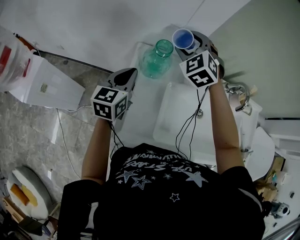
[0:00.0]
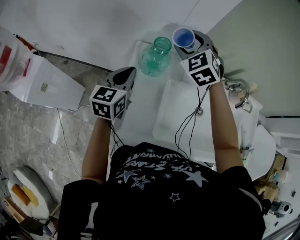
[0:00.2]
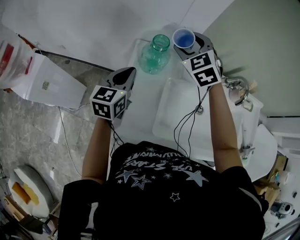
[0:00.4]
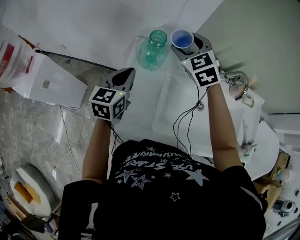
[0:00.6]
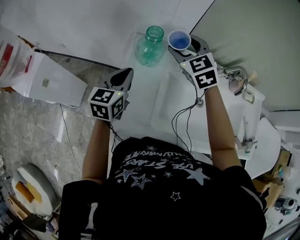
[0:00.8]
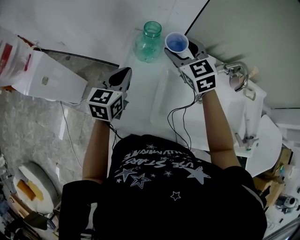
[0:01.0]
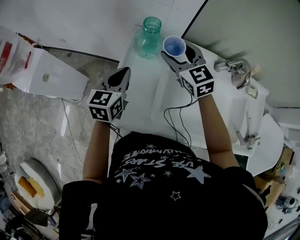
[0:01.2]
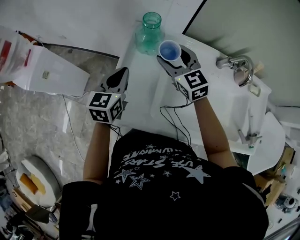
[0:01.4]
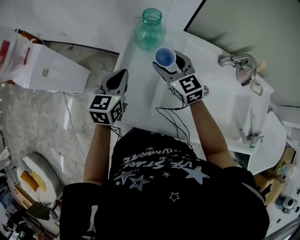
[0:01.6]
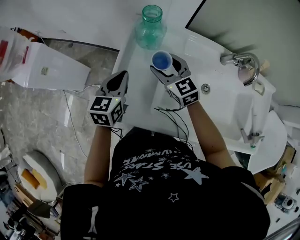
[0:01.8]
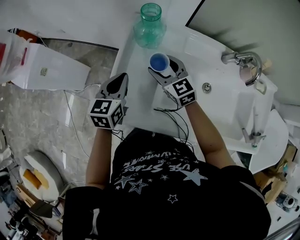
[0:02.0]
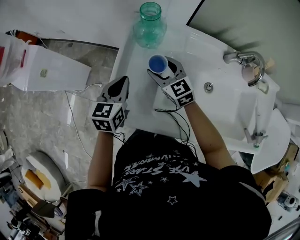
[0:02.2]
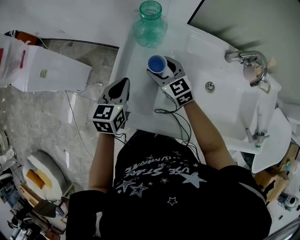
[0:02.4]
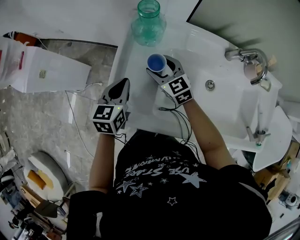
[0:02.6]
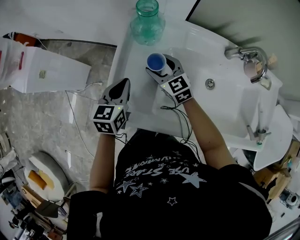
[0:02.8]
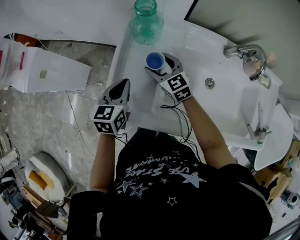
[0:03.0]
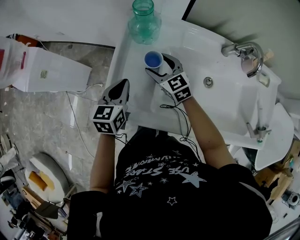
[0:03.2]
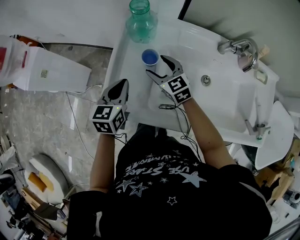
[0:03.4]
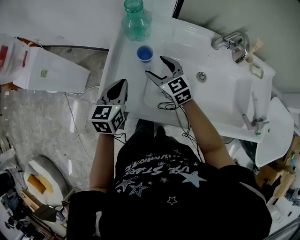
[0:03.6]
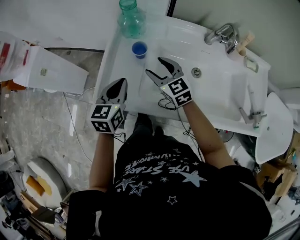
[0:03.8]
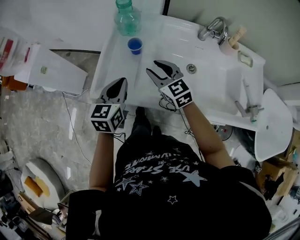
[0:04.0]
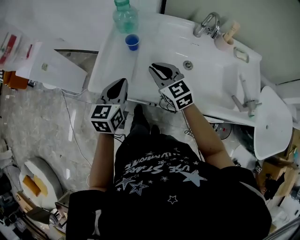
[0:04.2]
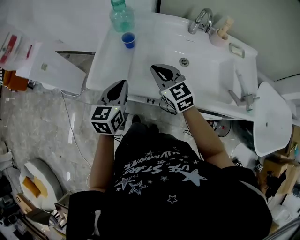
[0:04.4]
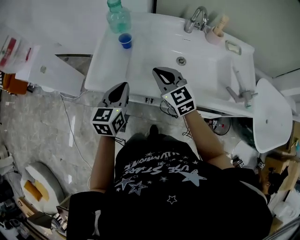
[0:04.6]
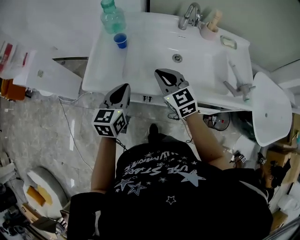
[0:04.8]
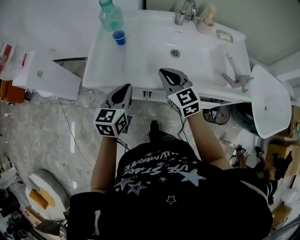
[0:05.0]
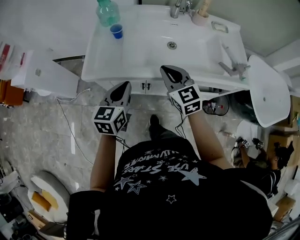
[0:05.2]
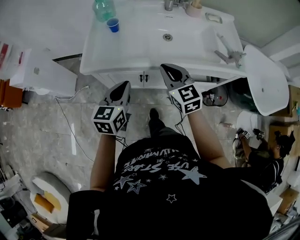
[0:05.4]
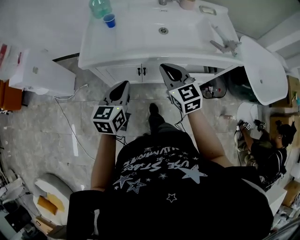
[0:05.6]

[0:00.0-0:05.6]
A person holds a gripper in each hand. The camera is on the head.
0:00.0 to 0:01.4: The right gripper goes about 15 cm backward and downward, and rotates roughly 40 degrees. Meanwhile the left gripper shifts about 10 cm backward.
0:01.4 to 0:02.8: The left gripper shifts some 5 cm downward, while the right gripper heads downward, covering roughly 15 cm.
0:02.8 to 0:04.2: The grippers both shift backward and upward by approximately 20 cm. The right gripper closes its fingers.
0:04.2 to 0:05.6: Both grippers travel together backward, approximately 20 cm. The right gripper swivels about 20 degrees.

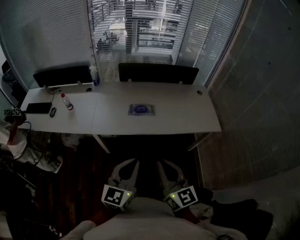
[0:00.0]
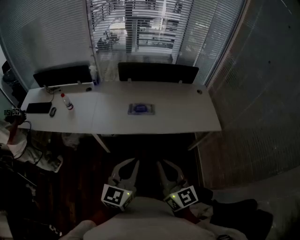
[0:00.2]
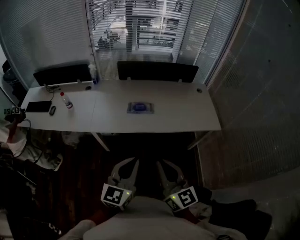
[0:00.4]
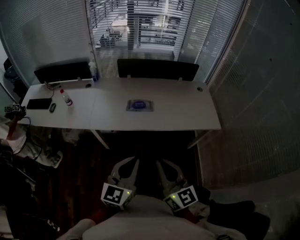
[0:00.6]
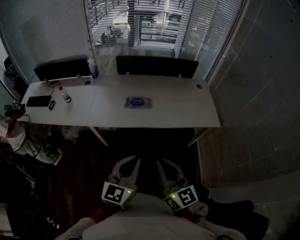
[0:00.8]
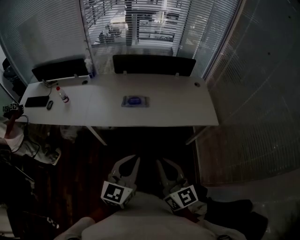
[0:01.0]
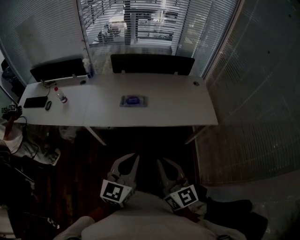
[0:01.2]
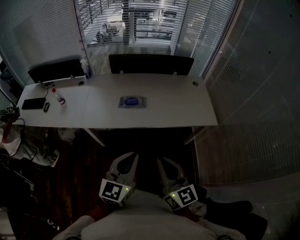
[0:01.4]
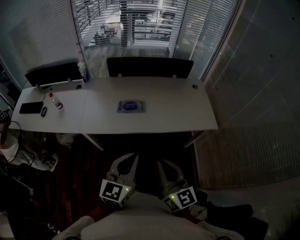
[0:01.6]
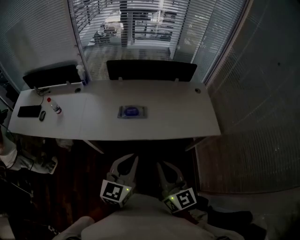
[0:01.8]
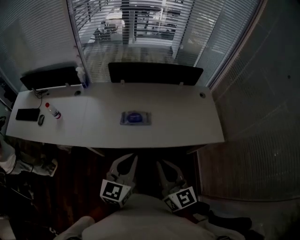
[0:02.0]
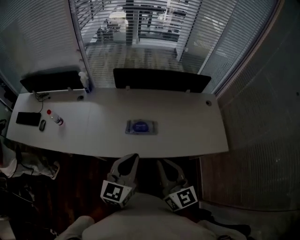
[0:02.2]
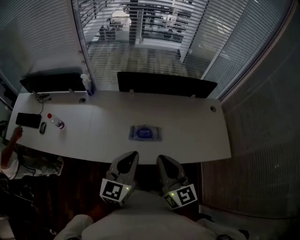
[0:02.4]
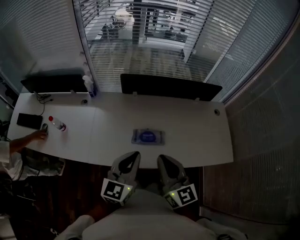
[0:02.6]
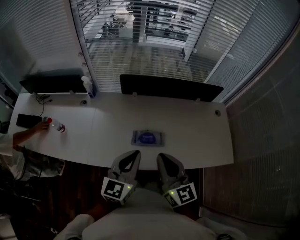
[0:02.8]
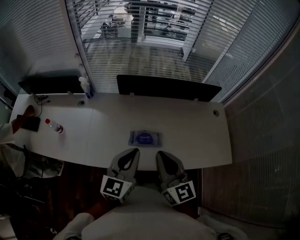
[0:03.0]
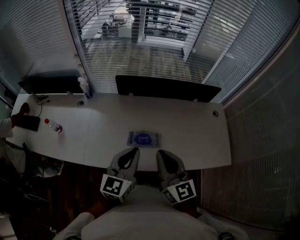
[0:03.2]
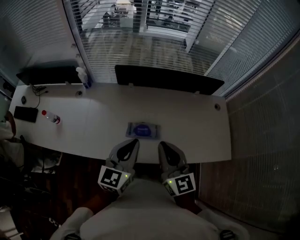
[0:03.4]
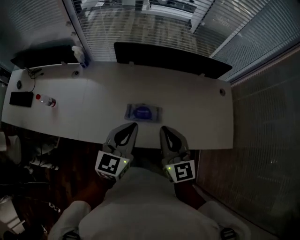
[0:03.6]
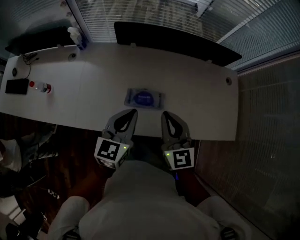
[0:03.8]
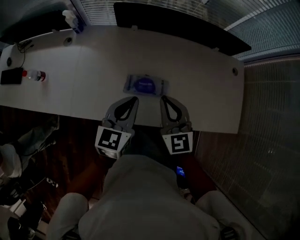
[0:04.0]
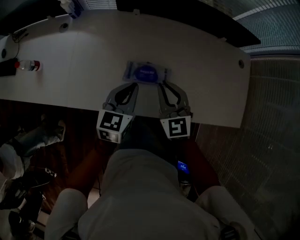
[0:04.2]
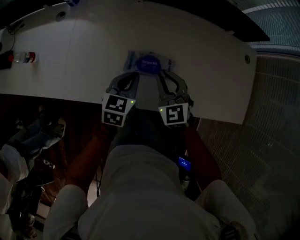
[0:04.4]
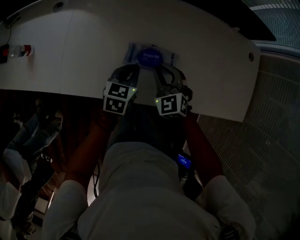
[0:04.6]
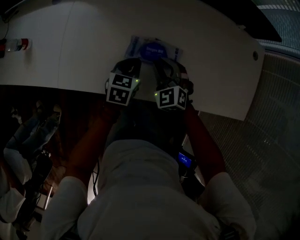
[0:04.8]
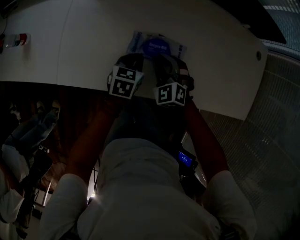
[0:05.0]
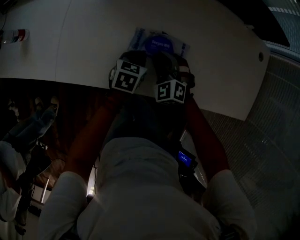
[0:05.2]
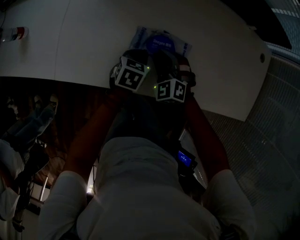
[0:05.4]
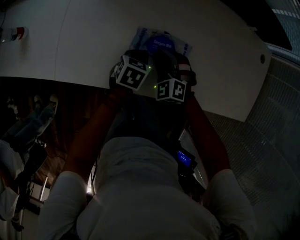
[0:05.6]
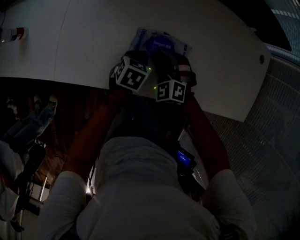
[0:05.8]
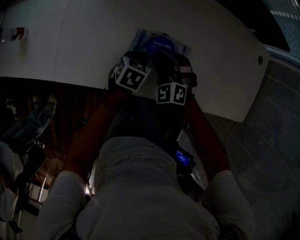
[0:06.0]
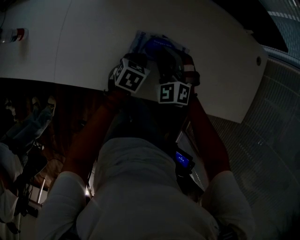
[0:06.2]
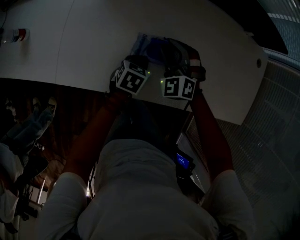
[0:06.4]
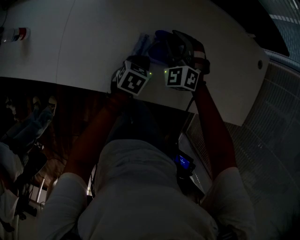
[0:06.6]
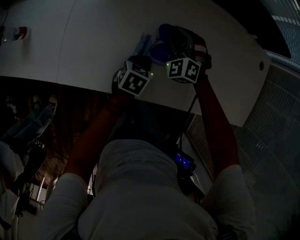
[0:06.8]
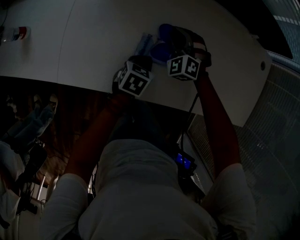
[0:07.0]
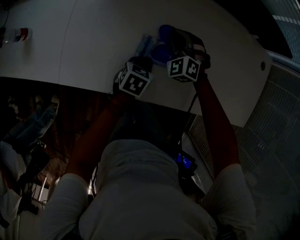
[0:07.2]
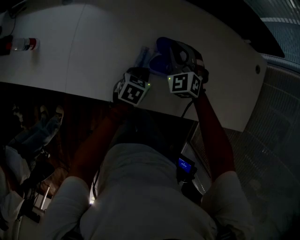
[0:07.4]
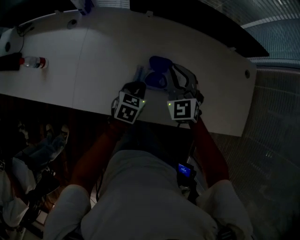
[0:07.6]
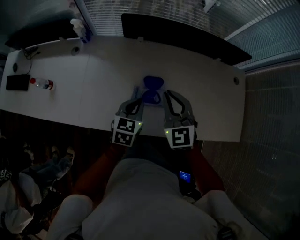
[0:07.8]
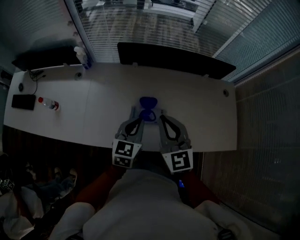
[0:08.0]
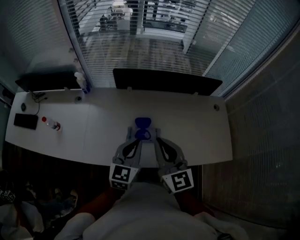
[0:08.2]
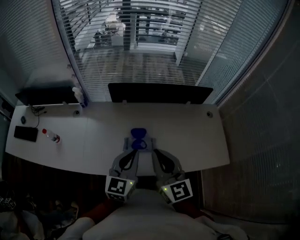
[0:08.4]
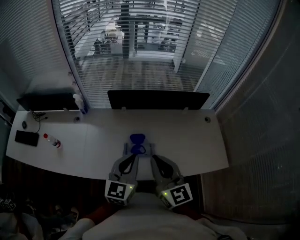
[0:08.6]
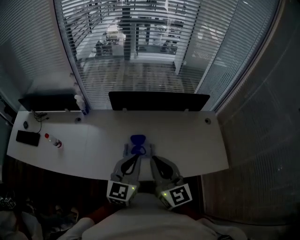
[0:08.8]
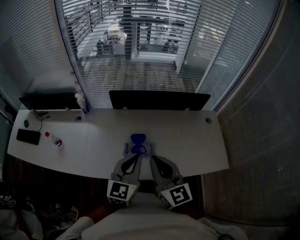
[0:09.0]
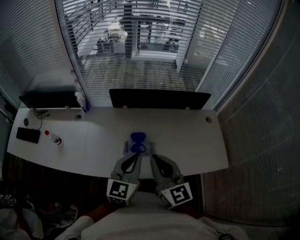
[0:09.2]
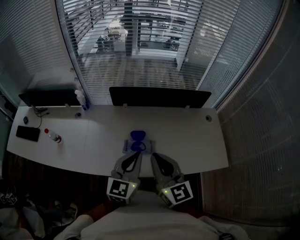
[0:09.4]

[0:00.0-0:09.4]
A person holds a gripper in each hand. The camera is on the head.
0:00.0 to 0:01.6: The right gripper moves to the right, some 10 cm; the left gripper travels to the right and forward by some 10 cm.
0:01.6 to 0:03.2: The grippers both shift forward by roughly 35 cm.
0:03.2 to 0:04.8: The grippers both shift downward by roughly 35 cm. The left gripper tips its fingers downward by about 40 degrees, while the right gripper points its fingers about 40 degrees further downward.
0:04.8 to 0:06.2: The left gripper heads downward, covering roughly 5 cm.
0:06.2 to 0:07.8: Both grippers travel together upward, roughly 20 cm. The right gripper rotates approximately 30 degrees, and closes; the left gripper swivels roughly 30 degrees.
0:07.8 to 0:09.4: Both grippers move upward and backward, roughly 25 cm. The right gripper swivels some 40 degrees. The left gripper rotates about 30 degrees.

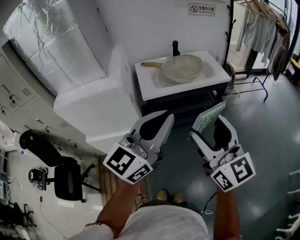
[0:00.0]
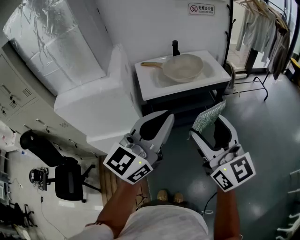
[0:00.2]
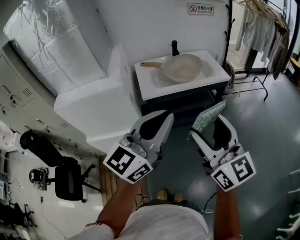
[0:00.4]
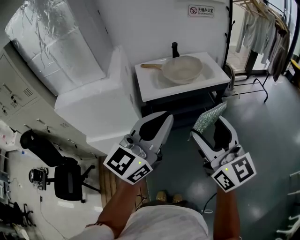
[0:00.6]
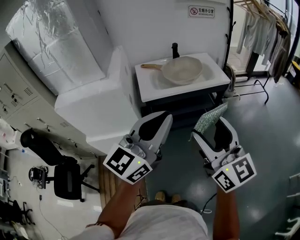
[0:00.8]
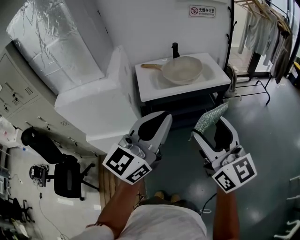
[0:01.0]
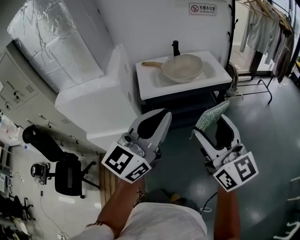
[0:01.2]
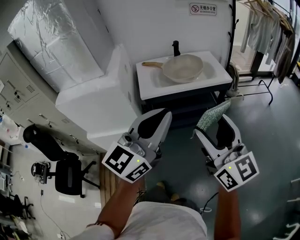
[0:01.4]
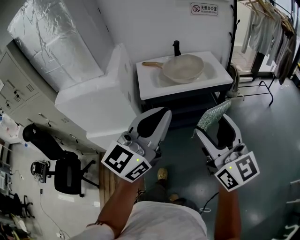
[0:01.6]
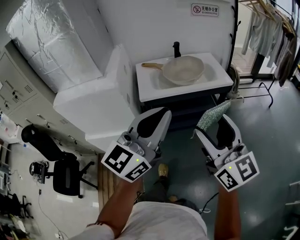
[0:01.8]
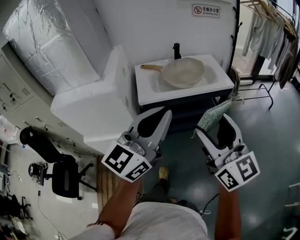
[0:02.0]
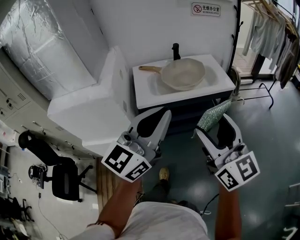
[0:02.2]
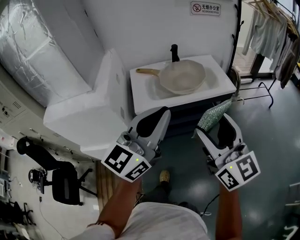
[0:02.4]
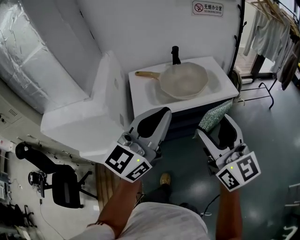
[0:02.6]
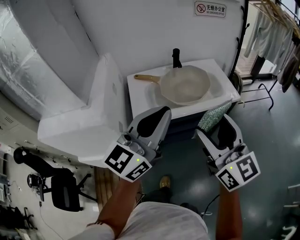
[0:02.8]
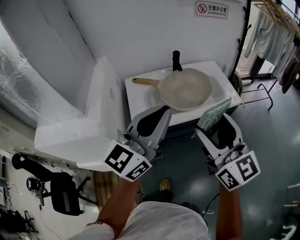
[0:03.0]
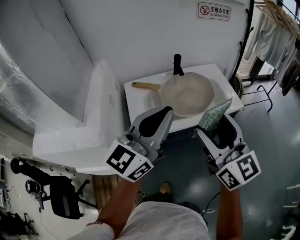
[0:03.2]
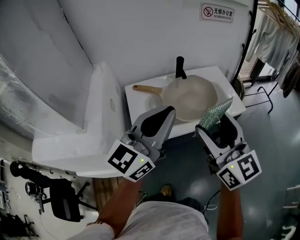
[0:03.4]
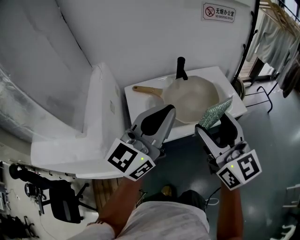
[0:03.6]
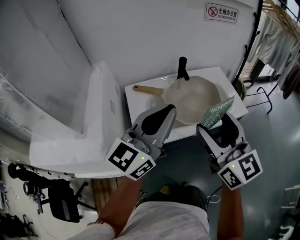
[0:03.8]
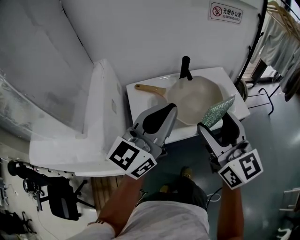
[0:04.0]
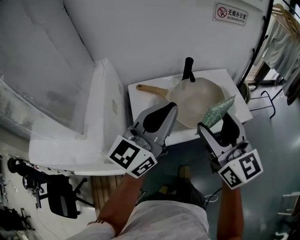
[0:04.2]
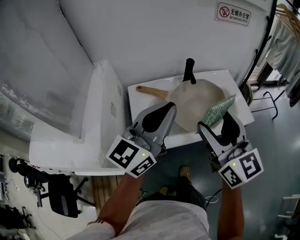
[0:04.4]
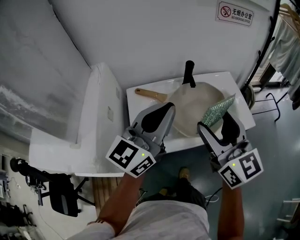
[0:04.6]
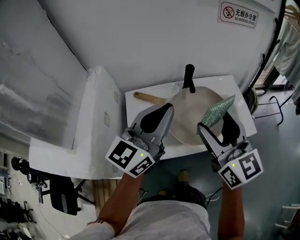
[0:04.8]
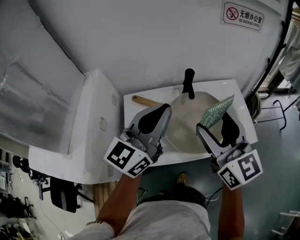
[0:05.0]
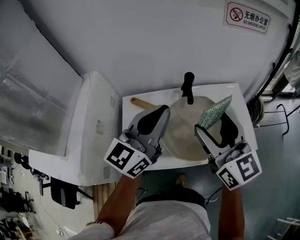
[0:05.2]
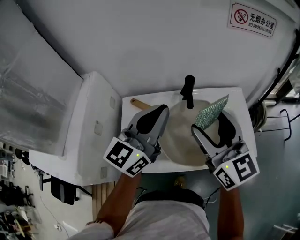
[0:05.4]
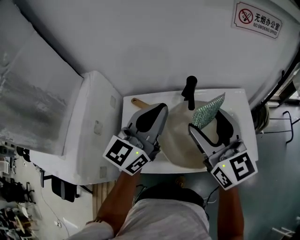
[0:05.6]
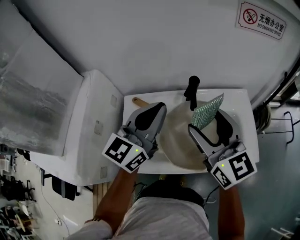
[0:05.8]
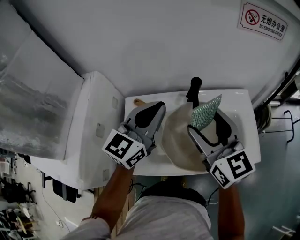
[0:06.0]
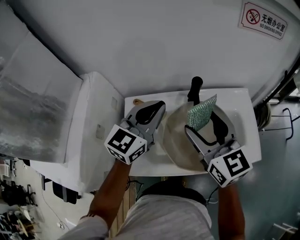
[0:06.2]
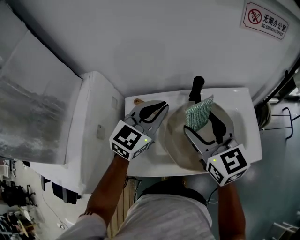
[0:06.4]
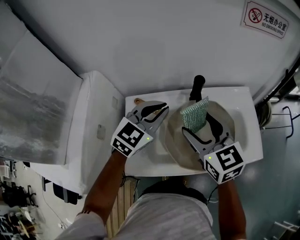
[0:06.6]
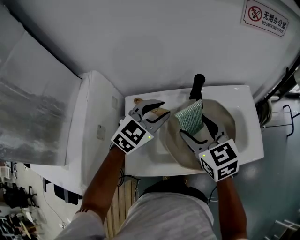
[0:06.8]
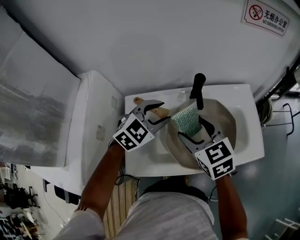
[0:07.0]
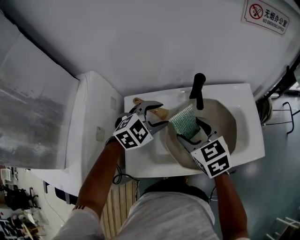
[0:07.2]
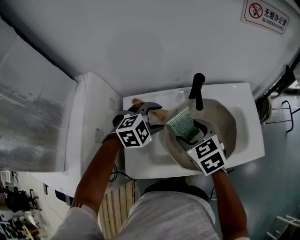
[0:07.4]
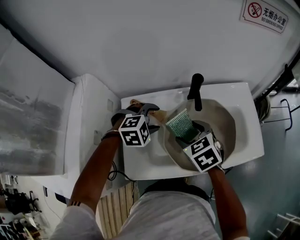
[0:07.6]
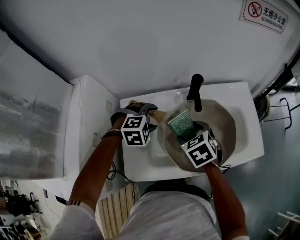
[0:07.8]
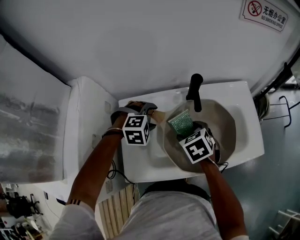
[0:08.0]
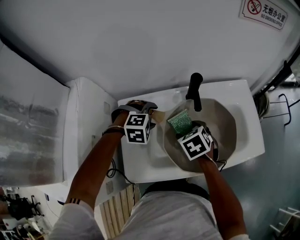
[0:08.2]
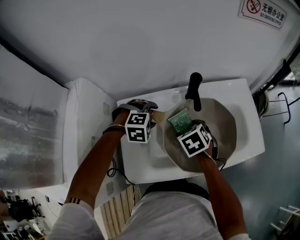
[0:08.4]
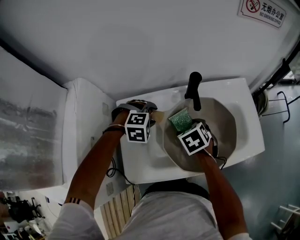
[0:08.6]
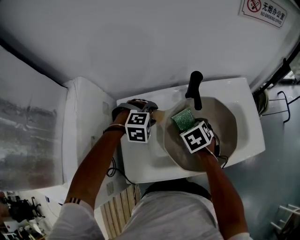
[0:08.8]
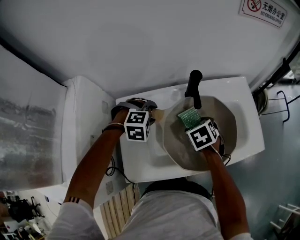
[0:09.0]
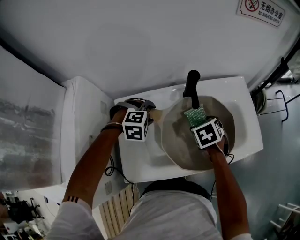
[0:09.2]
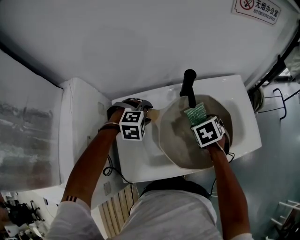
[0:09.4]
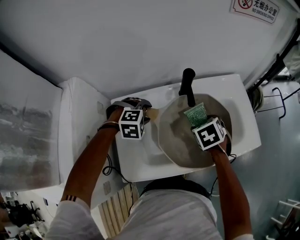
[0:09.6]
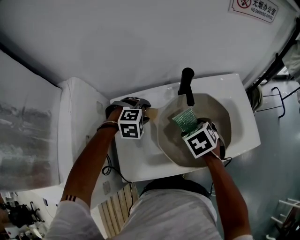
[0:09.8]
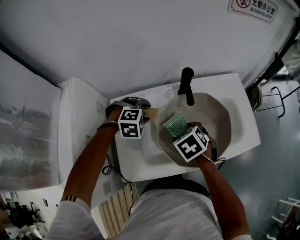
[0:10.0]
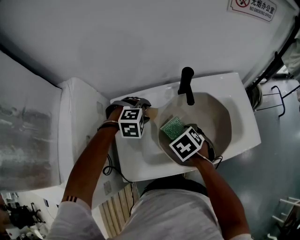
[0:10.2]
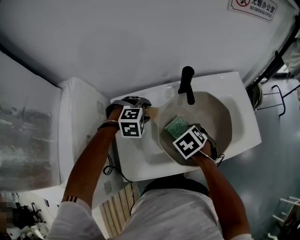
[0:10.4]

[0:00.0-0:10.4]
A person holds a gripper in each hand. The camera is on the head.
0:00.0 to 0:01.4: The right gripper is displaced to the right by about 5 cm.
0:01.4 to 0:03.0: The two grippers go approximately 25 cm forward.
0:03.0 to 0:04.4: Both grippers travel together forward, approximately 15 cm.
0:04.4 to 0:06.0: The grippers both shift forward by about 20 cm.
0:06.0 to 0:07.4: The grippers both shift downward by approximately 15 cm. The right gripper angles its fingers downward, by some 40 degrees; the left gripper points its fingers about 50 degrees further downward, and opens its fingers.
0:07.4 to 0:09.0: The right gripper goes about 15 cm downward, to the right and forward, and changes its angle by about 30 degrees. Meanwhile the left gripper is displaced downward by some 5 cm, and changes its angle by roughly 20 degrees.
0:09.0 to 0:10.4: The right gripper travels backward by approximately 5 cm, and reaches some 5 cm to the right, then returns.
